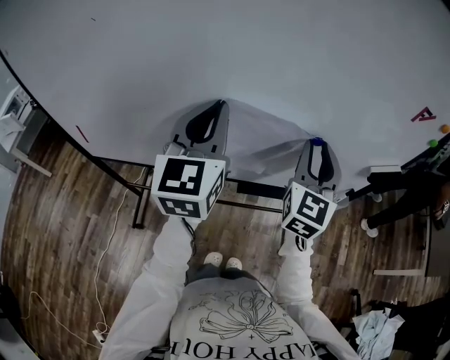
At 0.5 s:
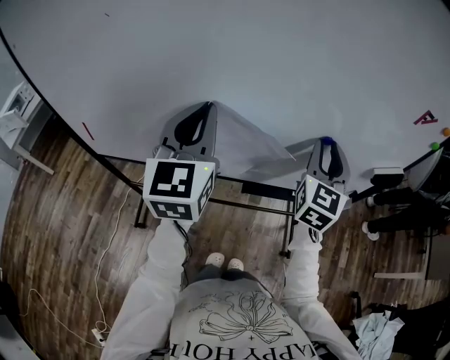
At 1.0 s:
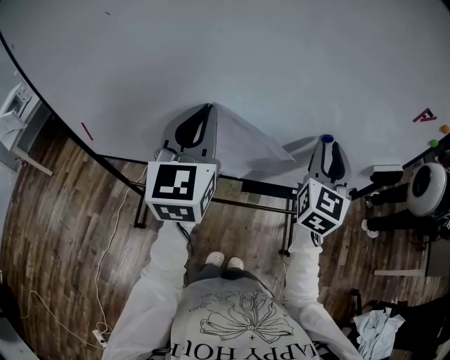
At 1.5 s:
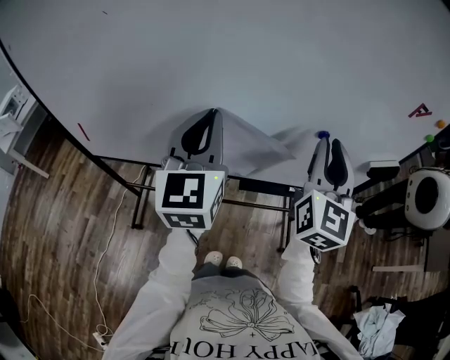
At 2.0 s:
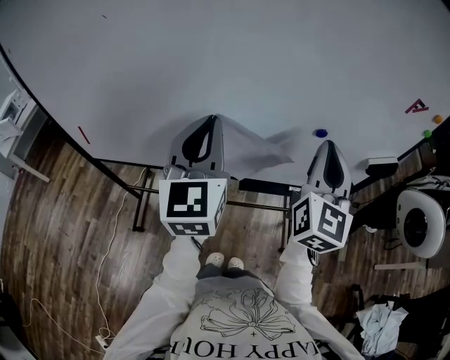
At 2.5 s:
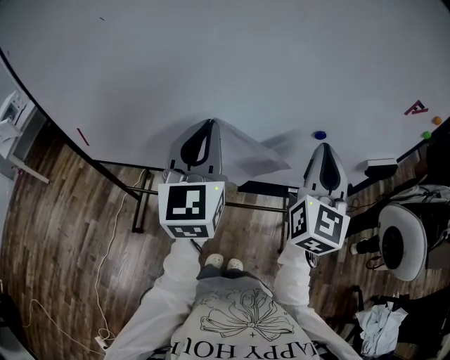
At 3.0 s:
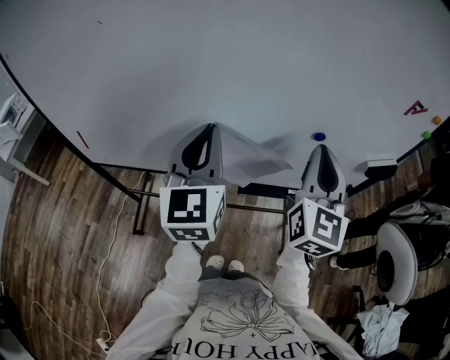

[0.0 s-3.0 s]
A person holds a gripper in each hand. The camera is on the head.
0.0 to 1.5 s: The right gripper shifts approximately 5 cm upward.
1.5 to 3.0 s: The grippers move only a little.

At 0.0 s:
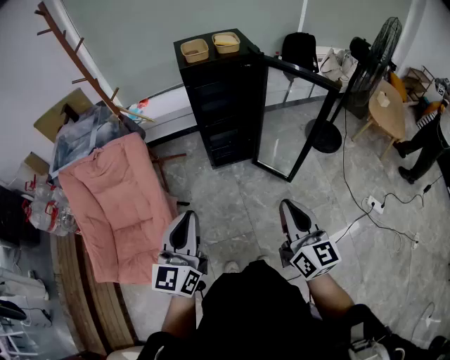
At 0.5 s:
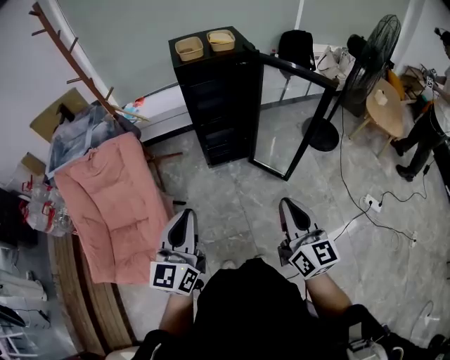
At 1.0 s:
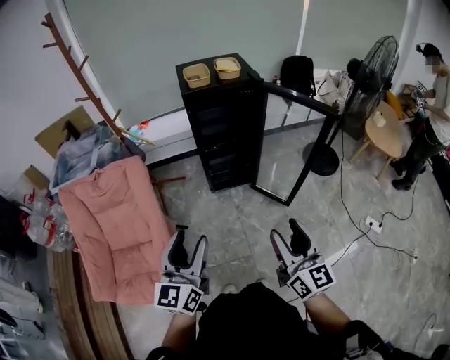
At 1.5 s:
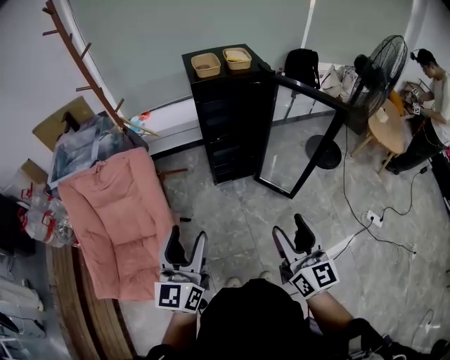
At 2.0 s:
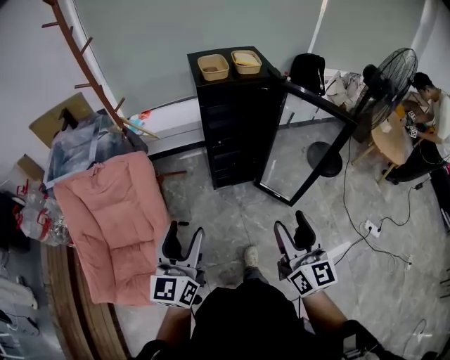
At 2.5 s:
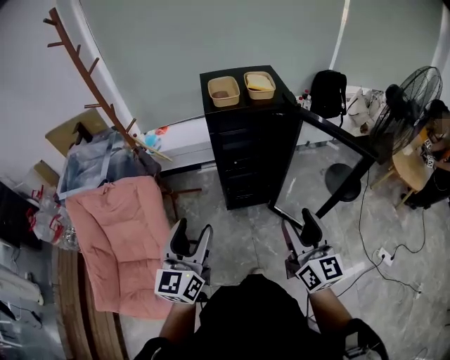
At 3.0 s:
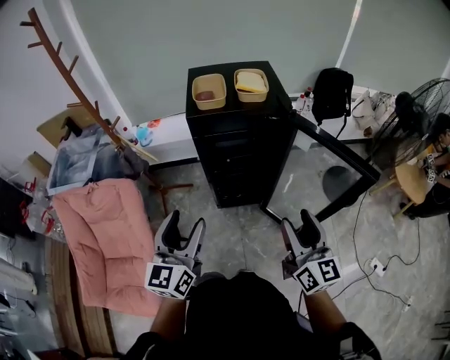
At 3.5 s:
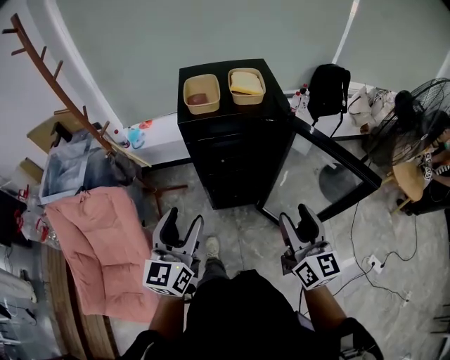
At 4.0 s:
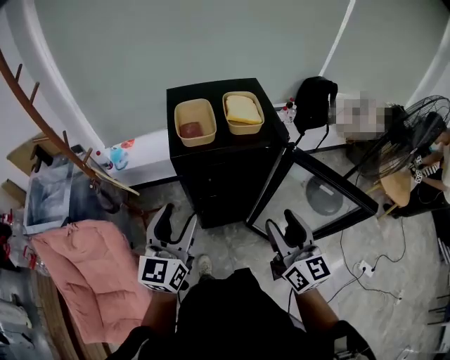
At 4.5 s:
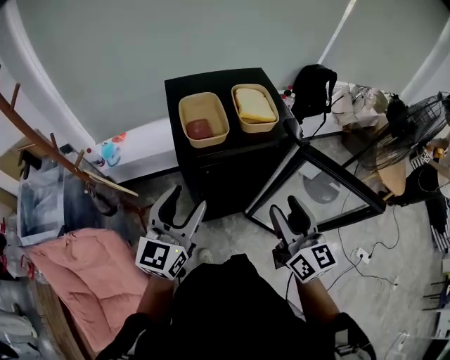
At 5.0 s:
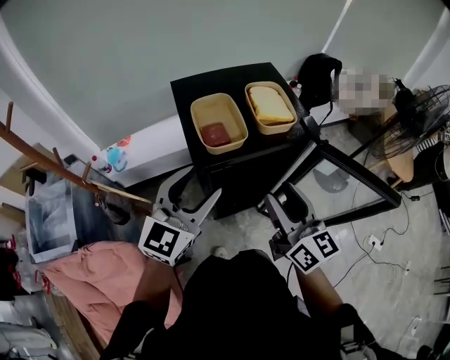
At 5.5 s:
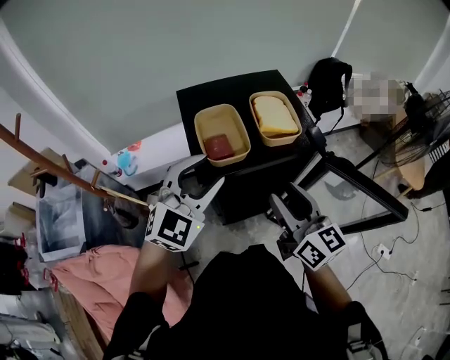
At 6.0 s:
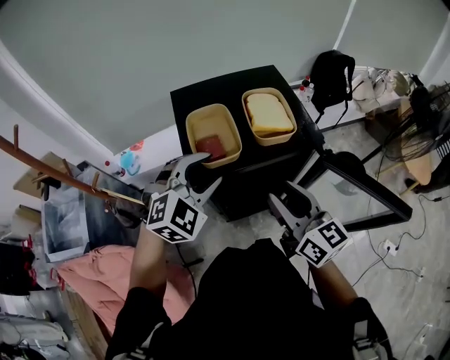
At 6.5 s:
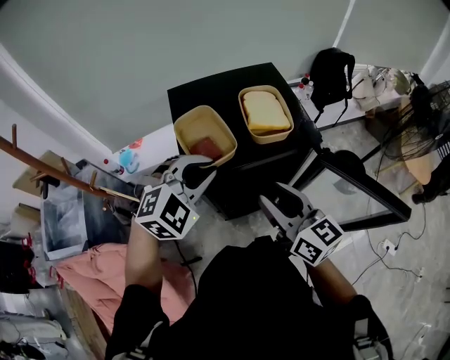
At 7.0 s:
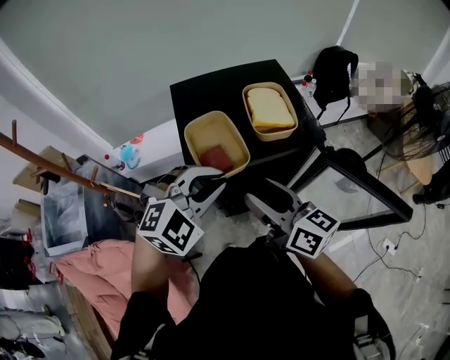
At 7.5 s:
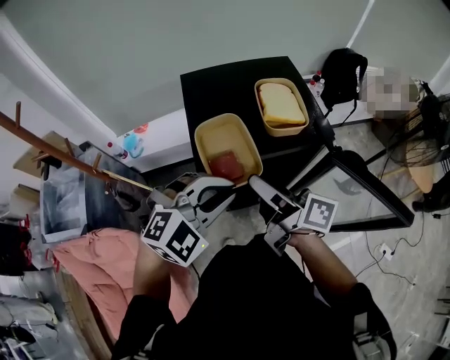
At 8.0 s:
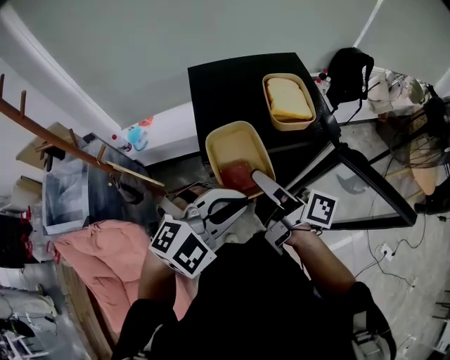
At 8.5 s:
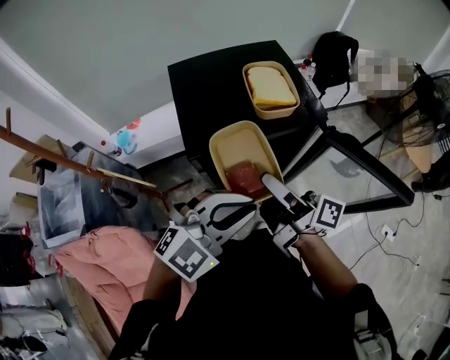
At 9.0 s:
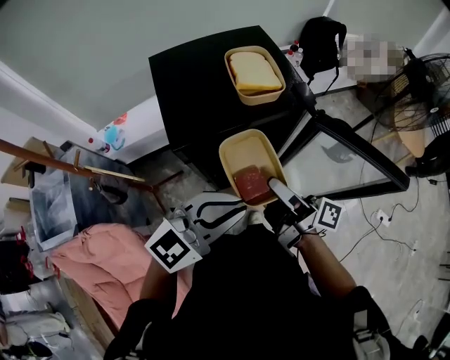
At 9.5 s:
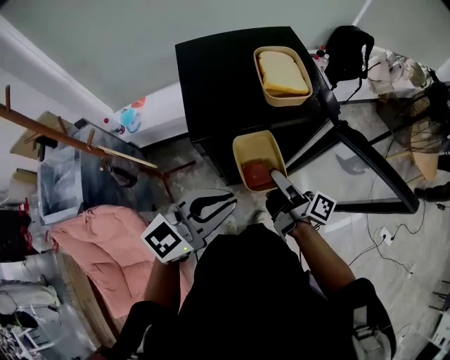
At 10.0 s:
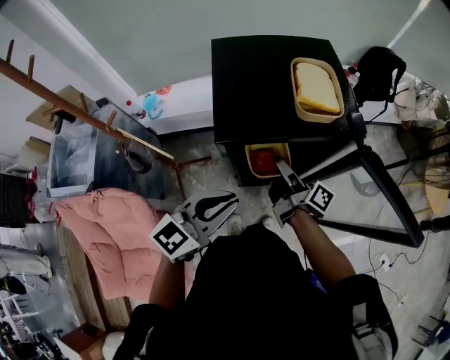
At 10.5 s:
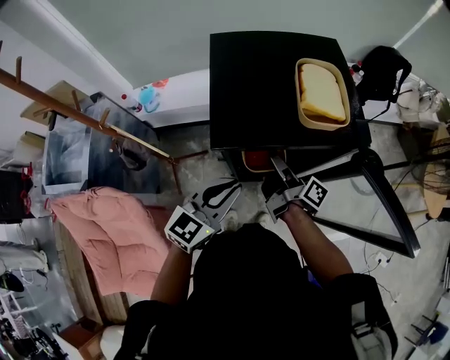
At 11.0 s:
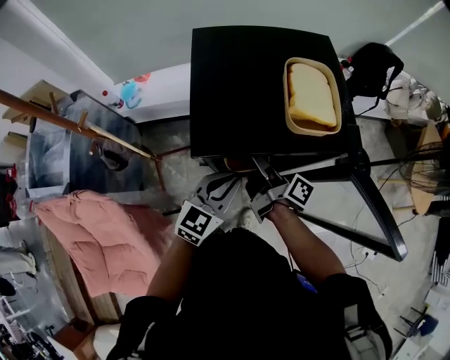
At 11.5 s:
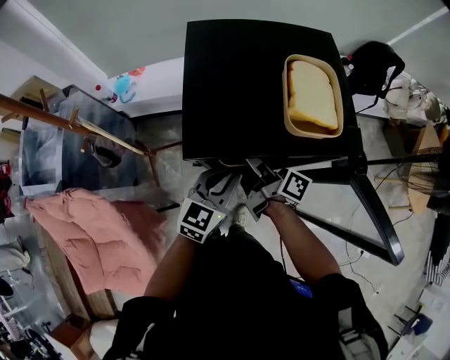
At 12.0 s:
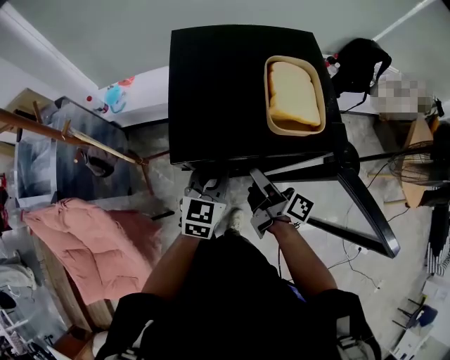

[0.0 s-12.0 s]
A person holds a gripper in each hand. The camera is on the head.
0.0 to 2.0 s: The right gripper heads forward, covering roughly 10 cm, and opens its fingers. The left gripper moves forward and to the left, some 10 cm, and opens.
2.0 to 4.0 s: Both grippers travel together forward, roughly 35 cm.
4.0 to 6.0 s: The right gripper moves forward and to the left, approximately 15 cm, while the left gripper shifts approximately 20 cm forward, and twists roughly 50 degrees clockwise, seen from behind.
6.0 to 8.0 s: The left gripper heads backward, covering approximately 10 cm, and closes its fingers. Meanwhile the right gripper travels to the left by roughly 10 cm, and rolls clockwise, seen from behind, by approximately 50 degrees.
8.0 to 10.0 s: The right gripper goes approximately 15 cm downward, while the left gripper heads downward, covering approximately 5 cm, and twists roughly 50 degrees counterclockwise, seen from behind.
10.0 to 12.0 s: The left gripper moves forward and downward, roughly 20 cm, and rotates about 30 degrees.

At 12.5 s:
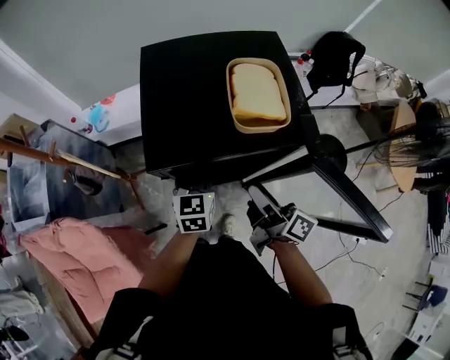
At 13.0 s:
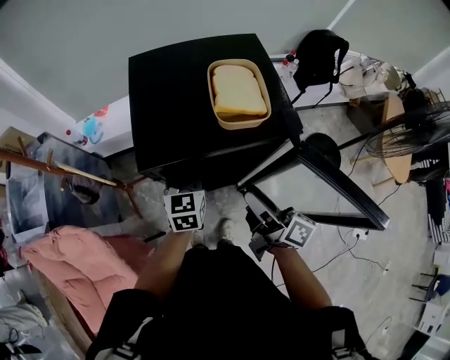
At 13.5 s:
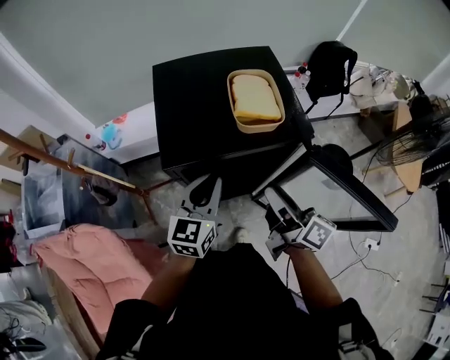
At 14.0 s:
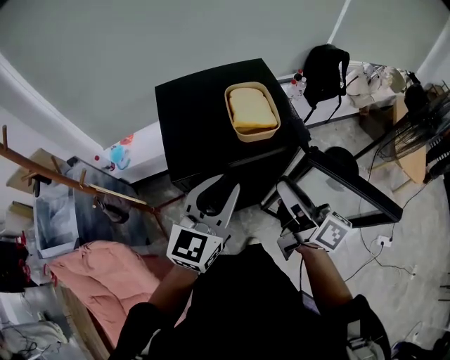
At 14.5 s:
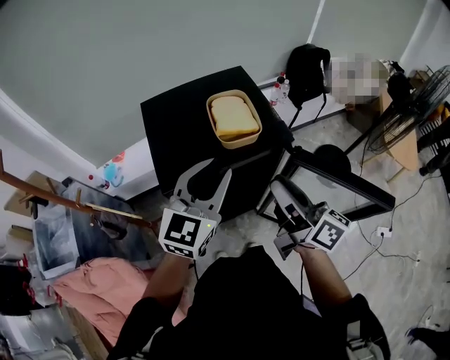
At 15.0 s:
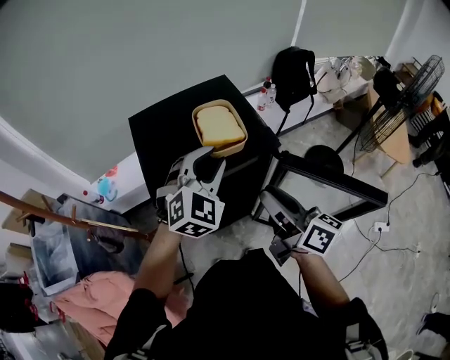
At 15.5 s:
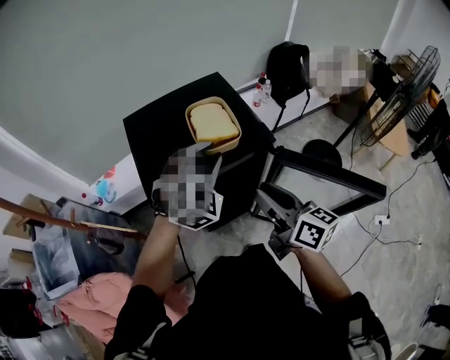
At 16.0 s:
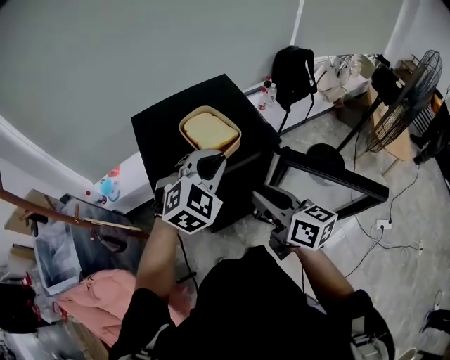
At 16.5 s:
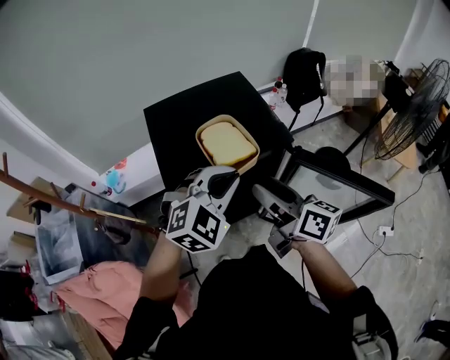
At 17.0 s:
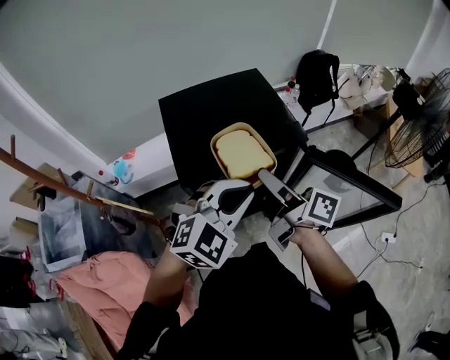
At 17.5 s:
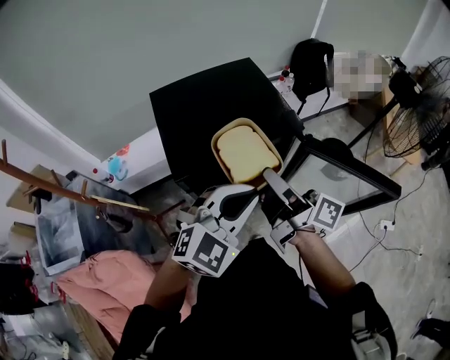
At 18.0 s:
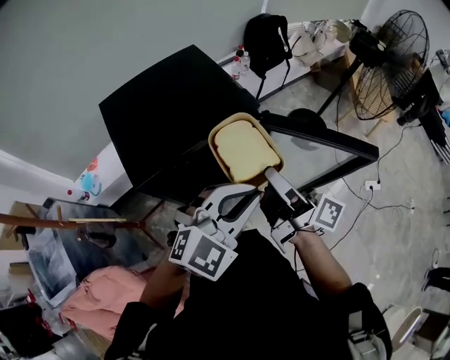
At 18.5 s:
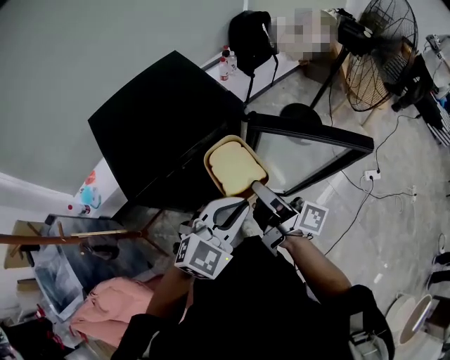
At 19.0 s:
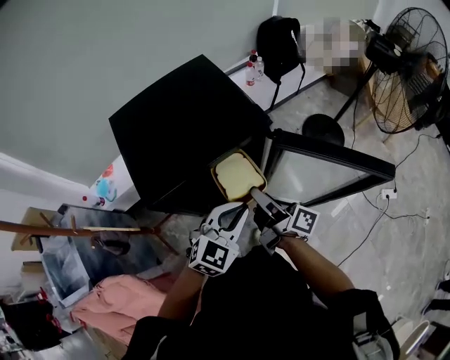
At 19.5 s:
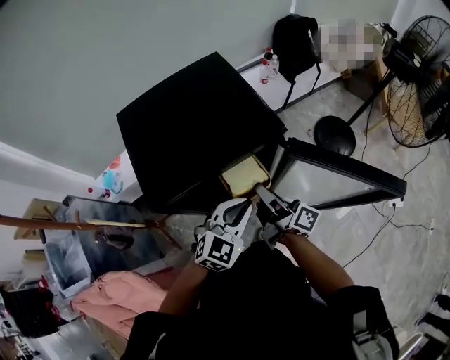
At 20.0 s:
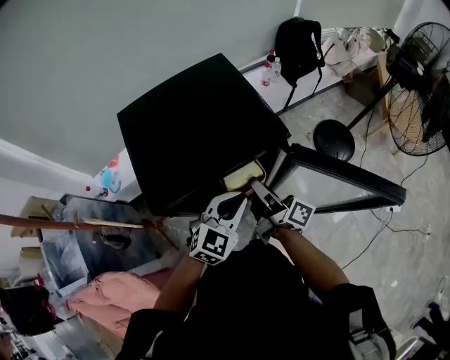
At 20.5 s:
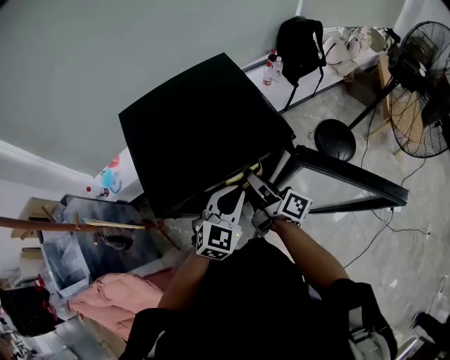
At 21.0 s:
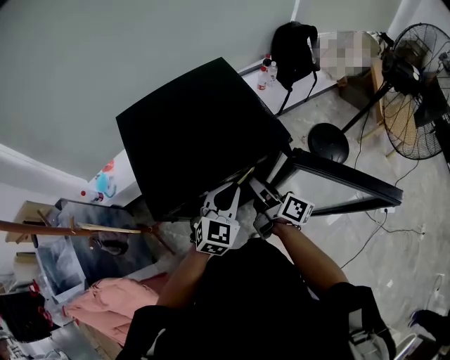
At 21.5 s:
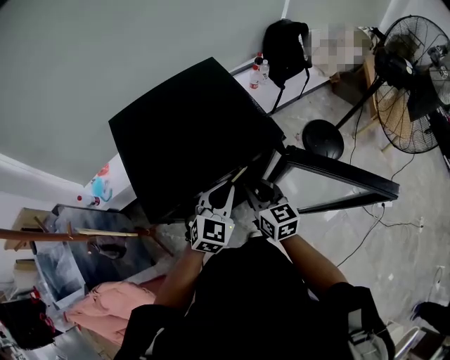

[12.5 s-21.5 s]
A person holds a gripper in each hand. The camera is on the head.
12.5 to 14.5 s: The right gripper is displaced upward by roughly 15 cm, rotates roughly 20 degrees, and closes; the left gripper travels upward by about 20 cm, and changes its angle by roughly 40 degrees.
14.5 to 17.0 s: The left gripper is displaced backward by roughly 5 cm, and swivels roughly 40 degrees; the right gripper moves to the left, about 5 cm, and opens.
17.0 to 19.5 s: The grippers both shift downward by roughly 15 cm.
19.5 to 21.5 s: The left gripper goes about 10 cm forward, while the right gripper ends up about 5 cm from where it was, twists some 60 degrees counterclockwise, seen from behind, and closes up.

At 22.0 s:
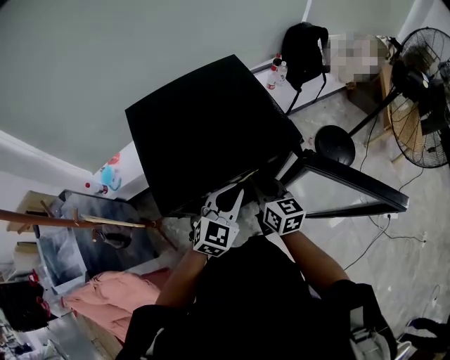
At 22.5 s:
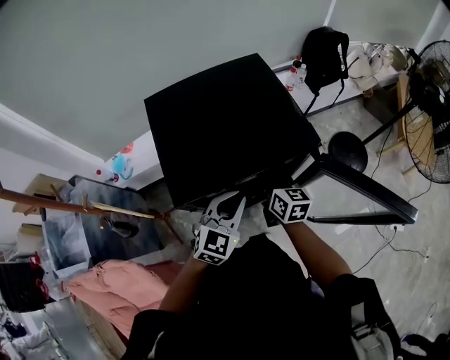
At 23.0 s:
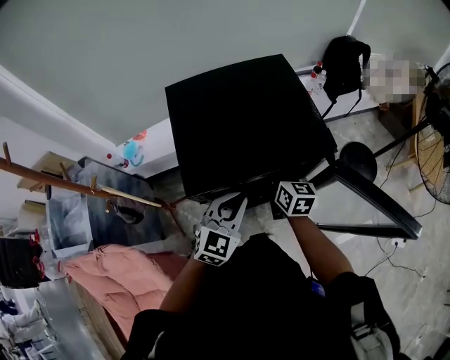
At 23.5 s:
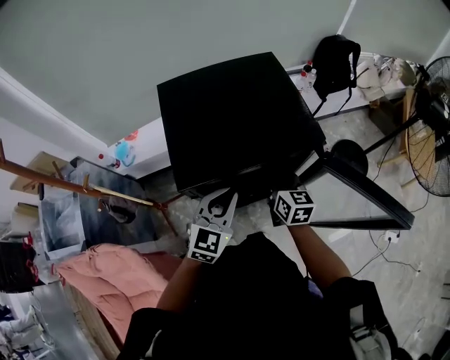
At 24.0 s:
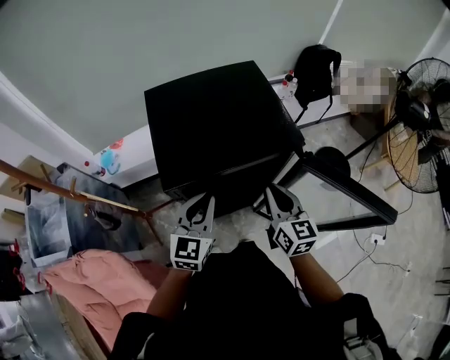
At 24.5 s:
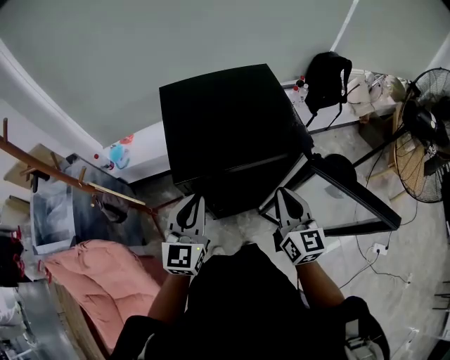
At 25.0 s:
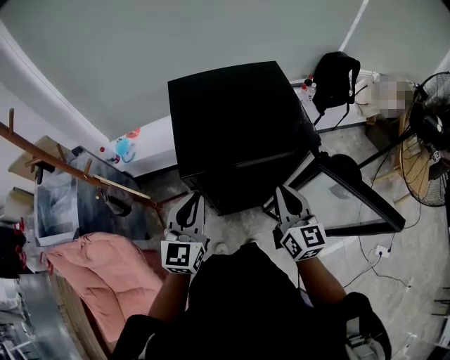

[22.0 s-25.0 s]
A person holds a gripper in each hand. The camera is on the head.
22.0 to 23.5 s: The left gripper moves to the left, about 5 cm.
23.5 to 25.0 s: The left gripper moves to the left and upward, roughly 10 cm, and changes its angle by roughly 20 degrees; the right gripper moves upward and backward, approximately 15 cm.
